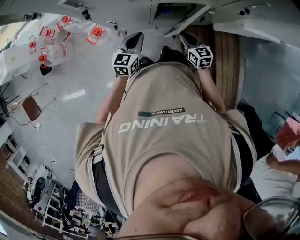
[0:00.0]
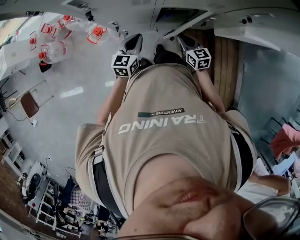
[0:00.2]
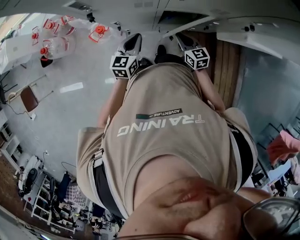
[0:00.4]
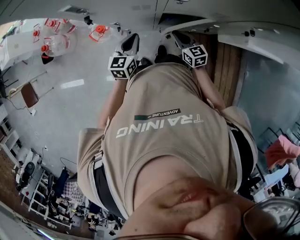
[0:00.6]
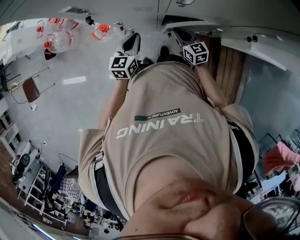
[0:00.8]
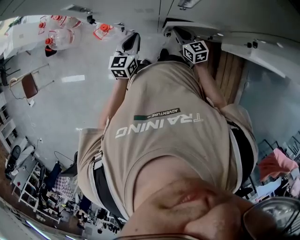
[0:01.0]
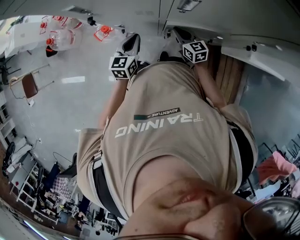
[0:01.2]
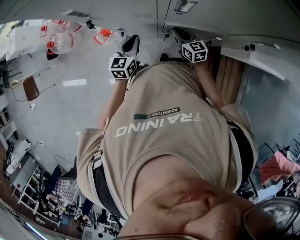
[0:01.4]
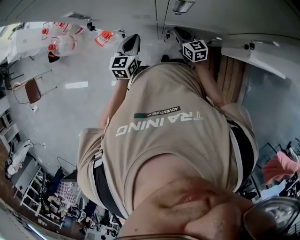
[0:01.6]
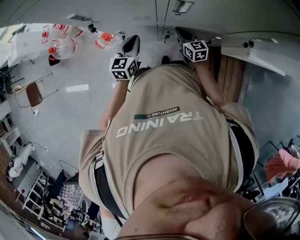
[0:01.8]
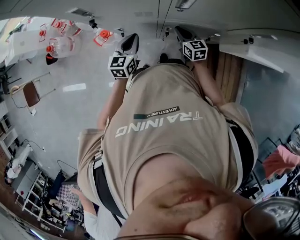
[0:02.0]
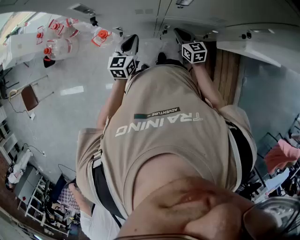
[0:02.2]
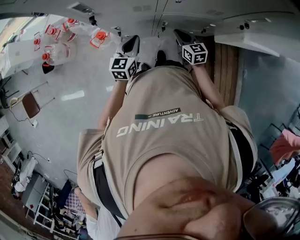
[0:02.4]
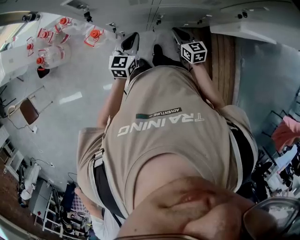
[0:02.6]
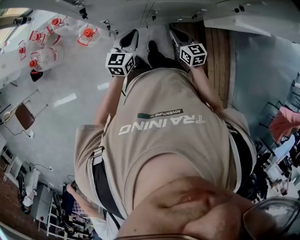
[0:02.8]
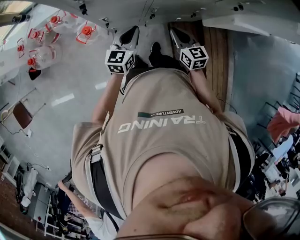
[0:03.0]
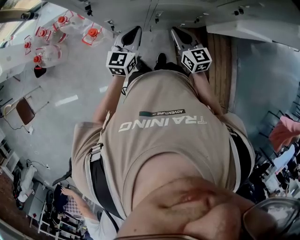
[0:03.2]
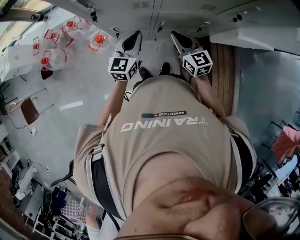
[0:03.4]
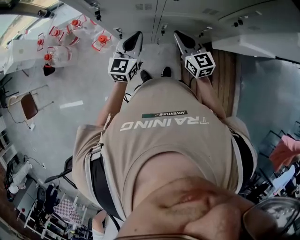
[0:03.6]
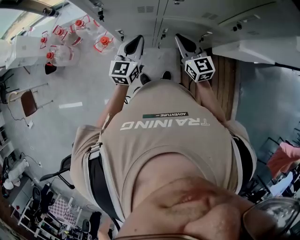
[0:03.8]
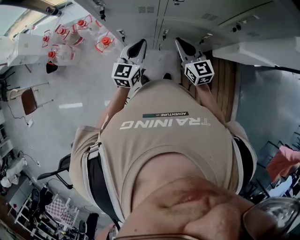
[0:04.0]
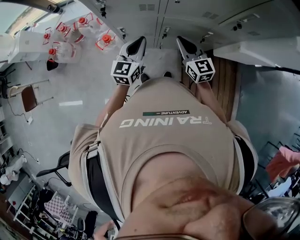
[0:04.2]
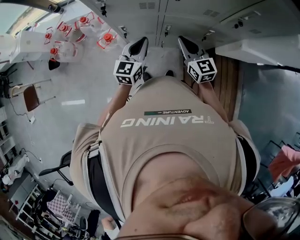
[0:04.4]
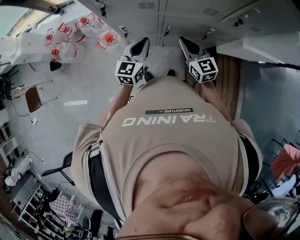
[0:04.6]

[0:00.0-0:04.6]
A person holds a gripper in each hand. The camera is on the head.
0.0 to 1.6 s: The right gripper shifts roughly 15 cm forward; the left gripper moves forward, roughly 10 cm.
1.6 to 3.0 s: The left gripper is displaced backward by roughly 5 cm. The right gripper heads backward and upward, covering approximately 15 cm.
3.0 to 4.6 s: The two grippers go some 10 cm upward.

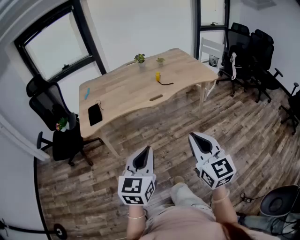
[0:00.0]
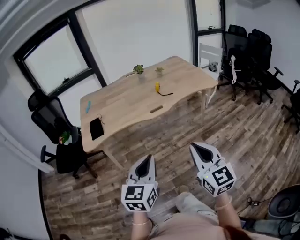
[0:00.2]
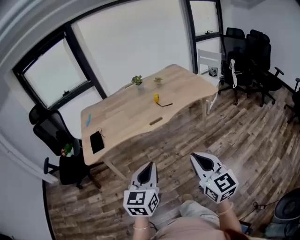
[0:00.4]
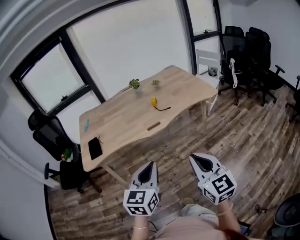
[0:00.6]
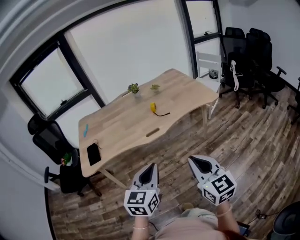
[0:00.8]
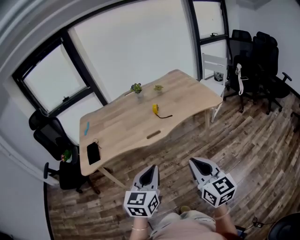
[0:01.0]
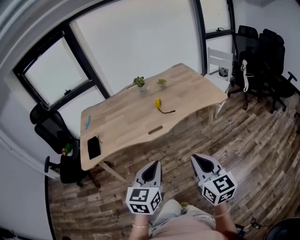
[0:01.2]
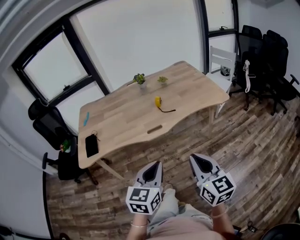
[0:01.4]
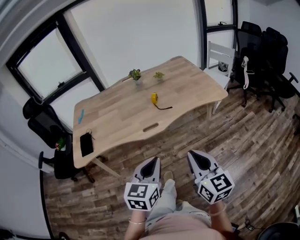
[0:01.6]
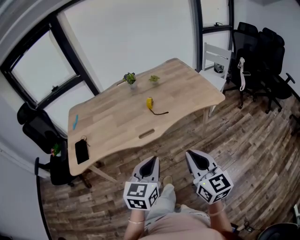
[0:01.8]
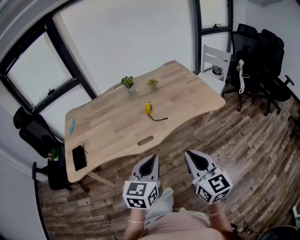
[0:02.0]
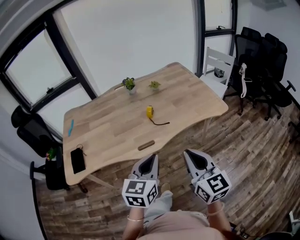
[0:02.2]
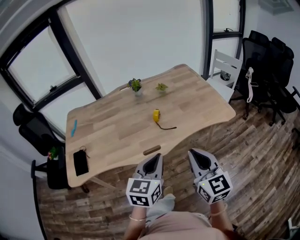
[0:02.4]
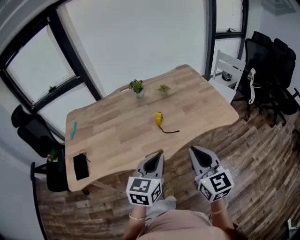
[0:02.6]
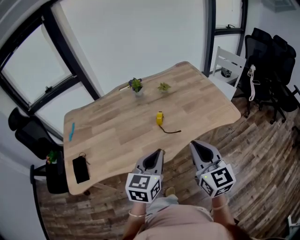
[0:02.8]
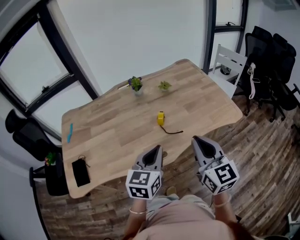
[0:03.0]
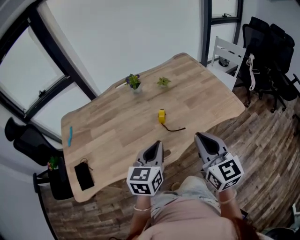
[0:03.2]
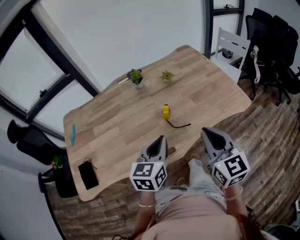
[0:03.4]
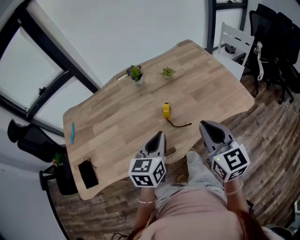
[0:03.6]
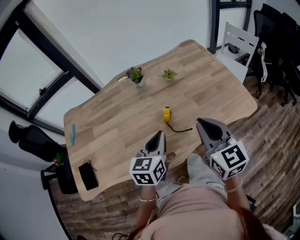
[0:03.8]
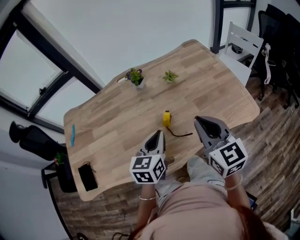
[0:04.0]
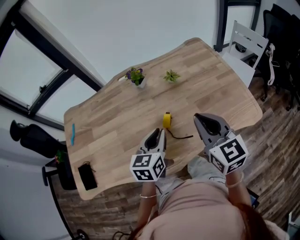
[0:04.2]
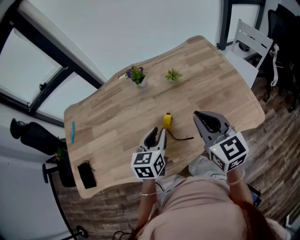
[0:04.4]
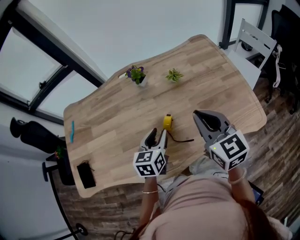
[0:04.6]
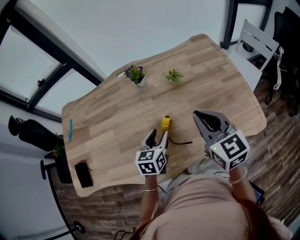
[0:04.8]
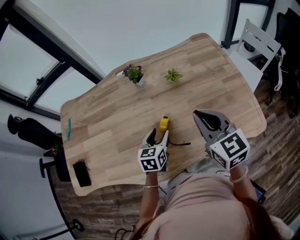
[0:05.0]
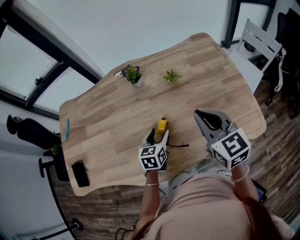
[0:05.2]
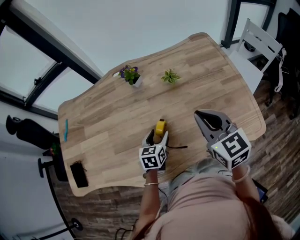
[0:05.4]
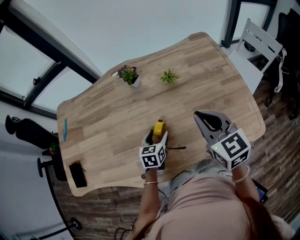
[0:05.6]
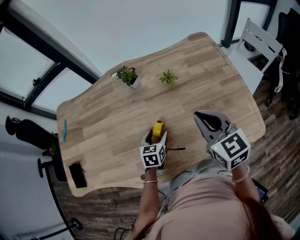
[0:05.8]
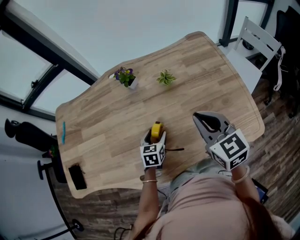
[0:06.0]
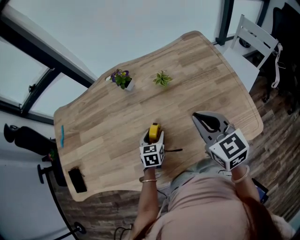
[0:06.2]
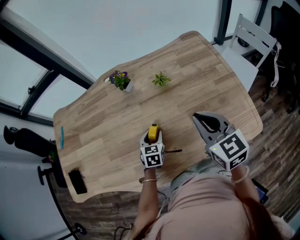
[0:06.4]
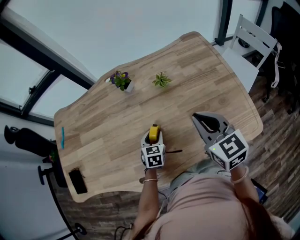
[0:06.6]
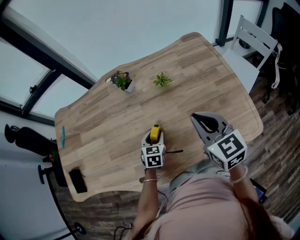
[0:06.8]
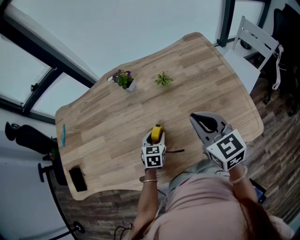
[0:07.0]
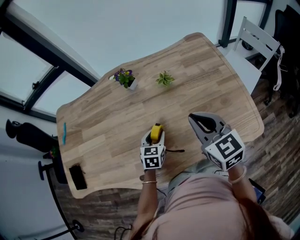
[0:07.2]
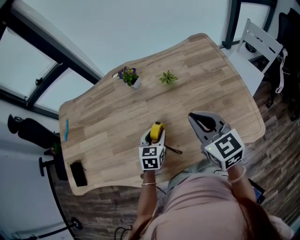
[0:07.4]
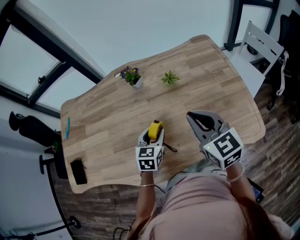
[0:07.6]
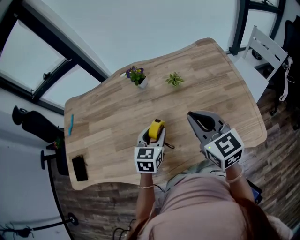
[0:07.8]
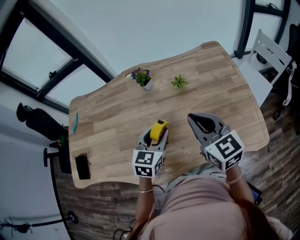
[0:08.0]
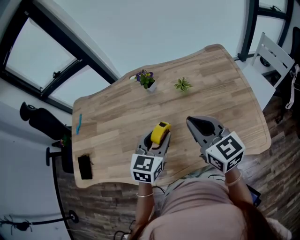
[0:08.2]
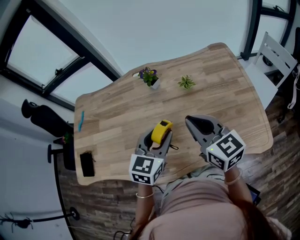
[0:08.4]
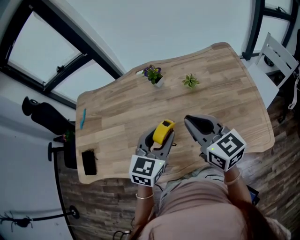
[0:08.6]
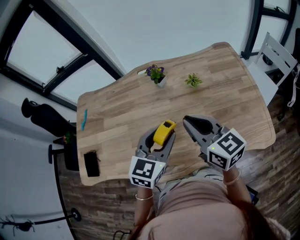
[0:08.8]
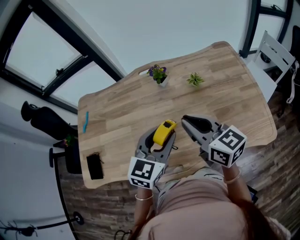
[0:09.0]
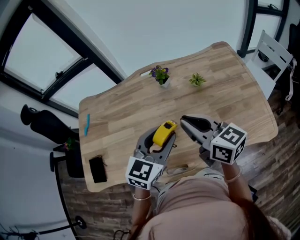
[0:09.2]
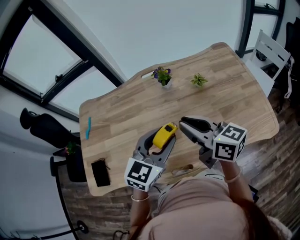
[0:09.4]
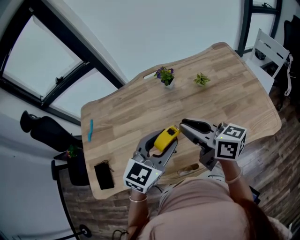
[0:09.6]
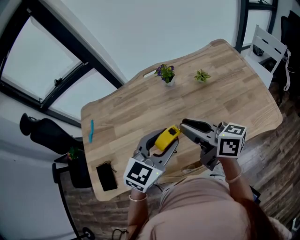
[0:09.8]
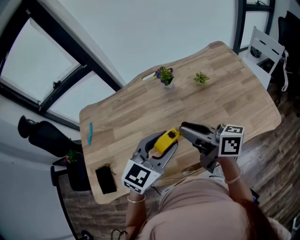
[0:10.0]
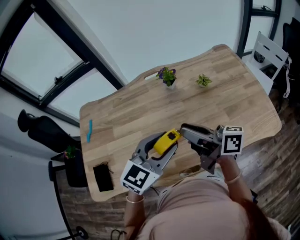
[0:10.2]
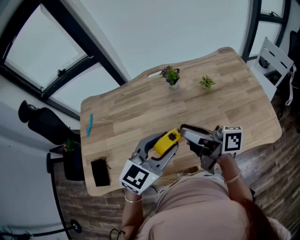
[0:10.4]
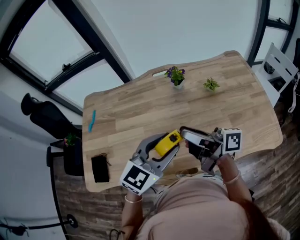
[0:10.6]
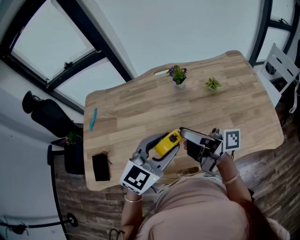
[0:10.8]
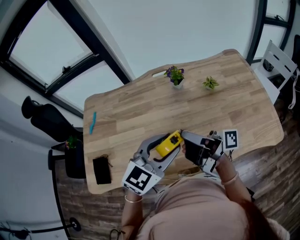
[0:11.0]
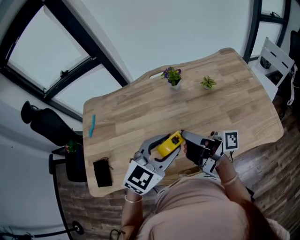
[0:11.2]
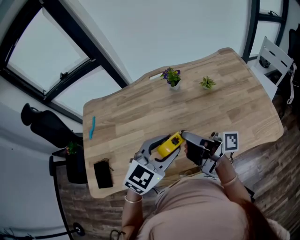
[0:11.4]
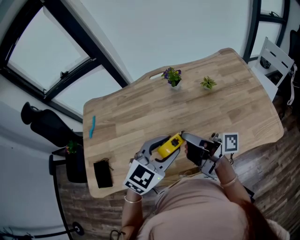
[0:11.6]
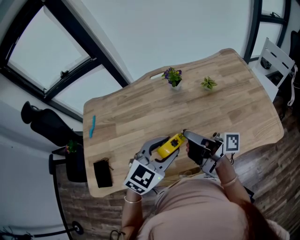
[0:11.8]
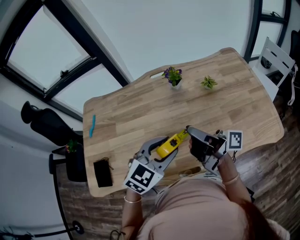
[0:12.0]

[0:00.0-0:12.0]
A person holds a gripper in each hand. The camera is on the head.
0.0 to 1.6 s: The grippers both shift forward and to the right by some 25 cm.
1.6 to 3.0 s: The two grippers go some 30 cm forward.
3.0 to 4.4 s: The left gripper is displaced forward and downward by about 20 cm, and opens its fingers. Meanwhile the right gripper is displaced forward by about 20 cm.
4.4 to 6.0 s: The left gripper is displaced downward by some 20 cm, and opens, while the right gripper moves forward, downward and to the right, approximately 10 cm.
6.0 to 7.6 s: The left gripper is displaced upward by some 10 cm.
7.6 to 9.0 s: The left gripper shifts roughly 20 cm upward. The right gripper moves to the left and upward, about 15 cm, and turns by about 20 degrees.
9.0 to 10.4 s: The grippers both shift to the left by roughly 10 cm. The right gripper rolls clockwise, seen from behind, by roughly 40 degrees, and opens up.

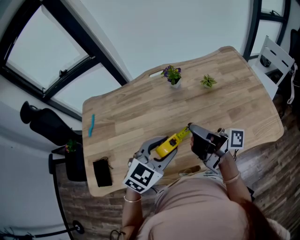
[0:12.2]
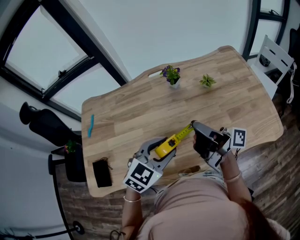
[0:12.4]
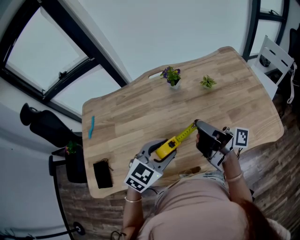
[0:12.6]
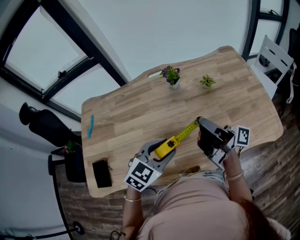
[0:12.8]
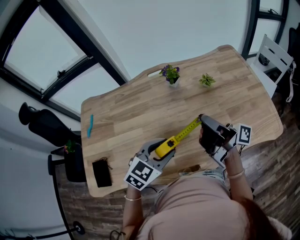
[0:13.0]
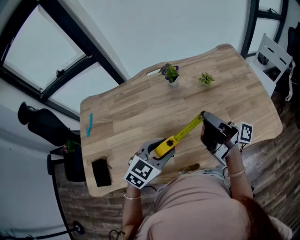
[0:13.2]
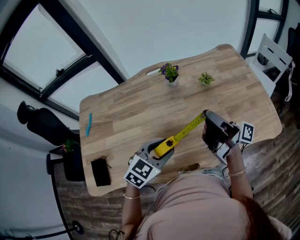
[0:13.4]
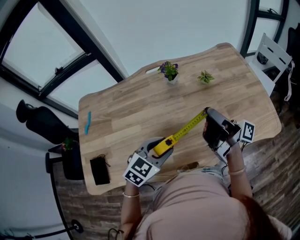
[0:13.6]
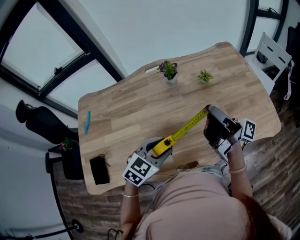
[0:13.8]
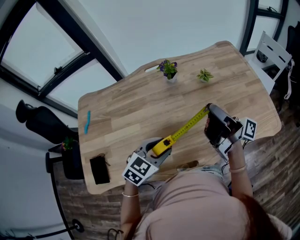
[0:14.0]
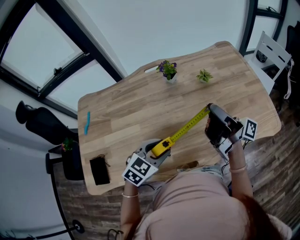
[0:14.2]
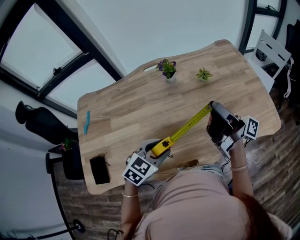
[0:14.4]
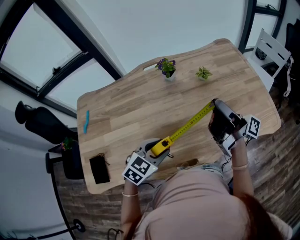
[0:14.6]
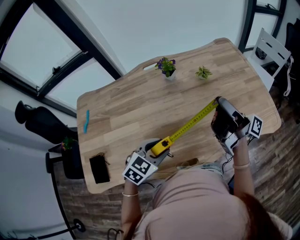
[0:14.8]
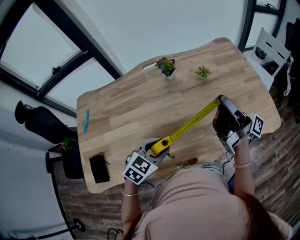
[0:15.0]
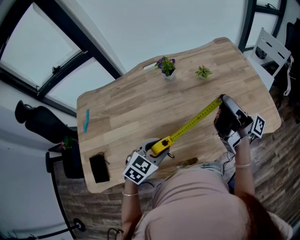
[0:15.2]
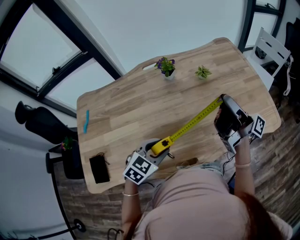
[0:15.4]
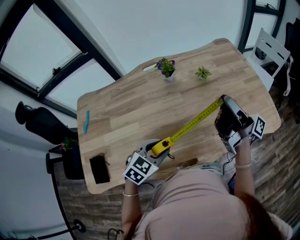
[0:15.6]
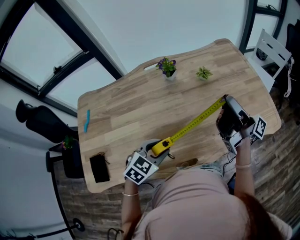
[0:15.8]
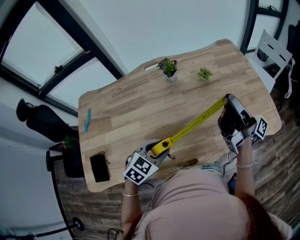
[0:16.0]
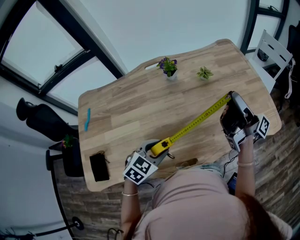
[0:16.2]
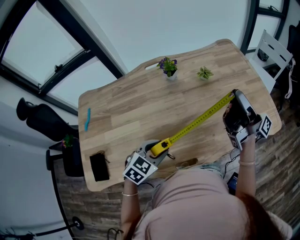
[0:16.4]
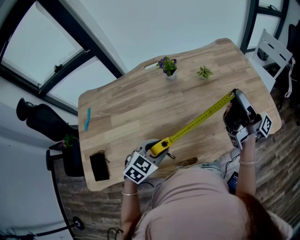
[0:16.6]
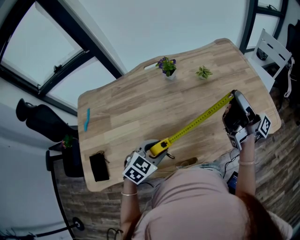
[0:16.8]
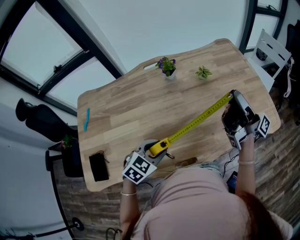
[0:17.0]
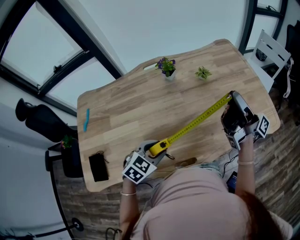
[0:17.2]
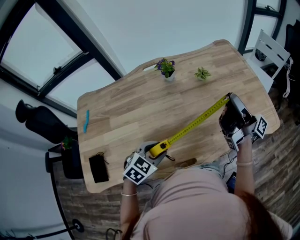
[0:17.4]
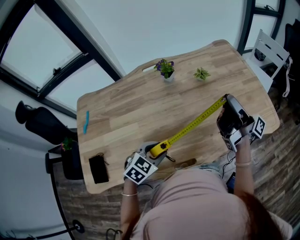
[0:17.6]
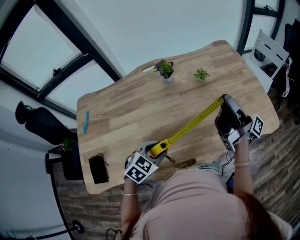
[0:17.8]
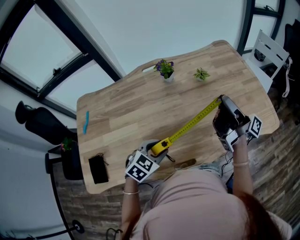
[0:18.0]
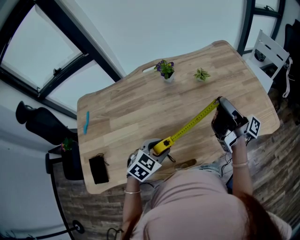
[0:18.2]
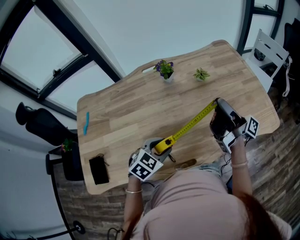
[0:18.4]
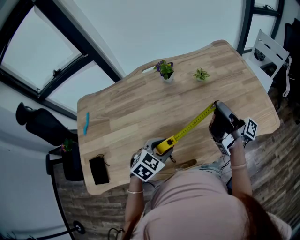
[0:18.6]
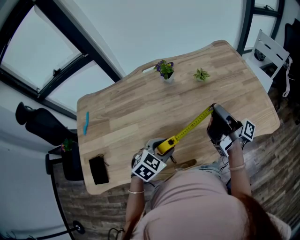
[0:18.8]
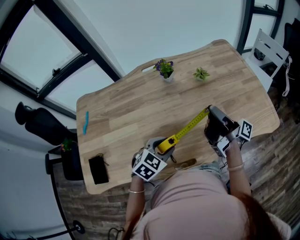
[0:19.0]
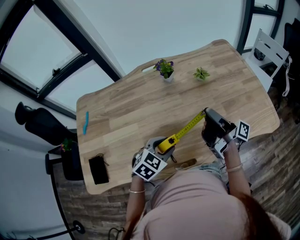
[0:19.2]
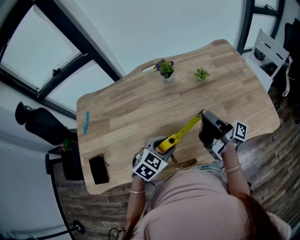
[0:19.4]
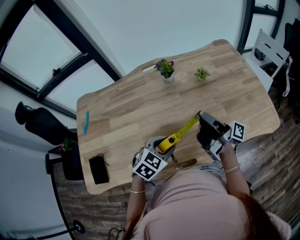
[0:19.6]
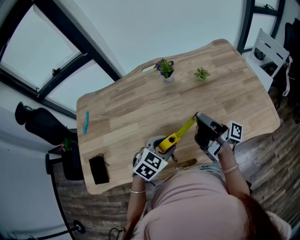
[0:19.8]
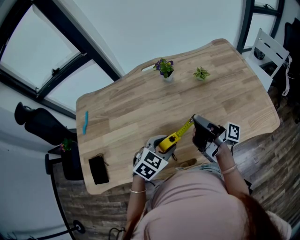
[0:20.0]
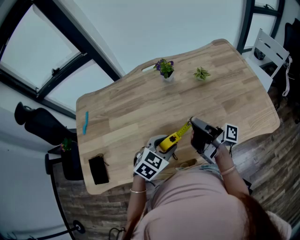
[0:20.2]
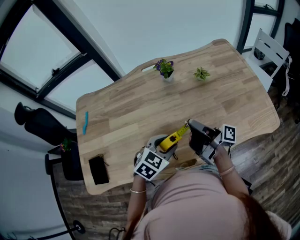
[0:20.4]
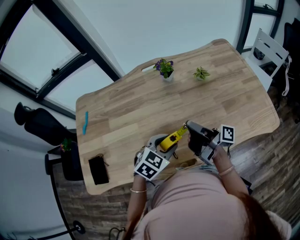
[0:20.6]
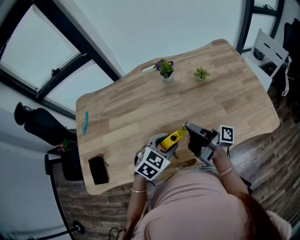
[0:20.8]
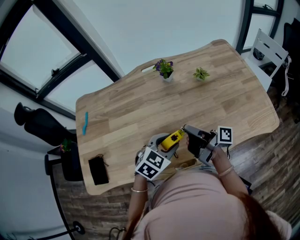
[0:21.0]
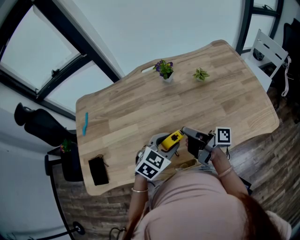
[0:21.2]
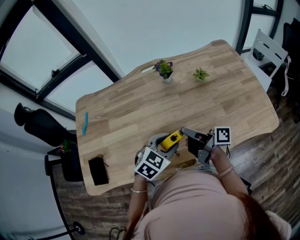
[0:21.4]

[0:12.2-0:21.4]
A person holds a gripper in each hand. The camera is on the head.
12.2 to 13.8 s: The left gripper travels downward by roughly 5 cm, while the right gripper goes roughly 10 cm to the right.
13.8 to 15.2 s: The right gripper goes roughly 5 cm to the right.
15.2 to 16.8 s: The grippers move only a little.
16.8 to 18.4 s: The right gripper moves about 5 cm.
18.4 to 19.8 s: The right gripper travels to the left and downward by approximately 10 cm.
19.8 to 21.4 s: The right gripper shifts some 5 cm to the left, and rotates approximately 20 degrees.
